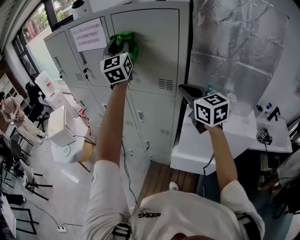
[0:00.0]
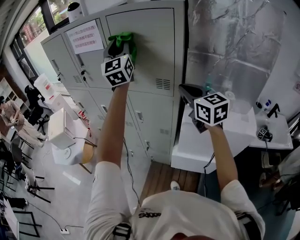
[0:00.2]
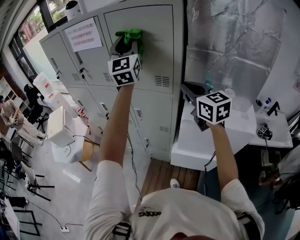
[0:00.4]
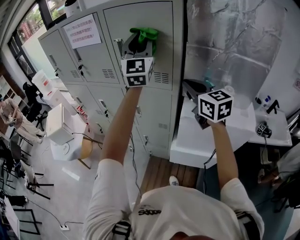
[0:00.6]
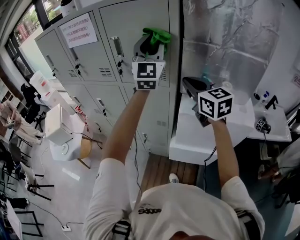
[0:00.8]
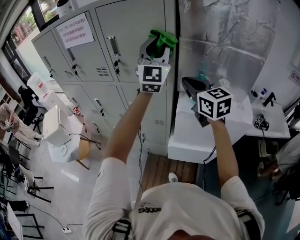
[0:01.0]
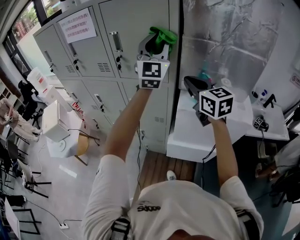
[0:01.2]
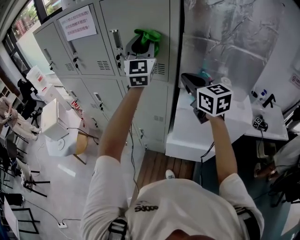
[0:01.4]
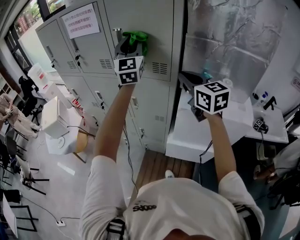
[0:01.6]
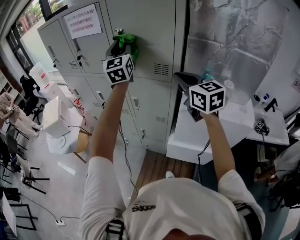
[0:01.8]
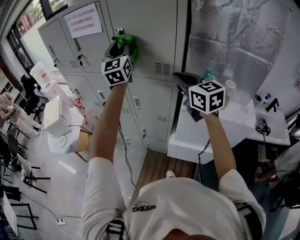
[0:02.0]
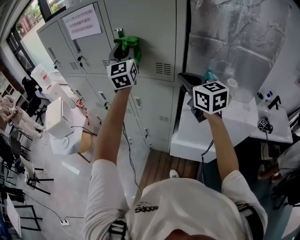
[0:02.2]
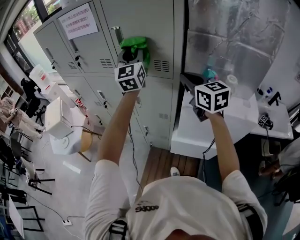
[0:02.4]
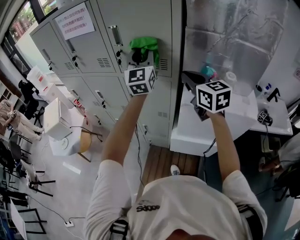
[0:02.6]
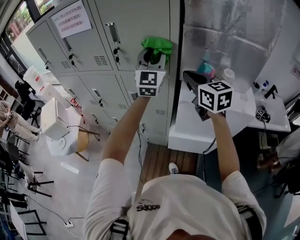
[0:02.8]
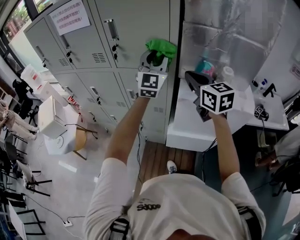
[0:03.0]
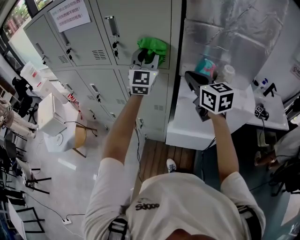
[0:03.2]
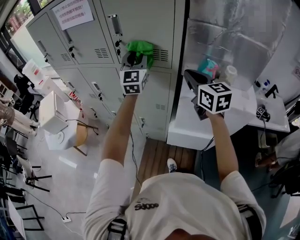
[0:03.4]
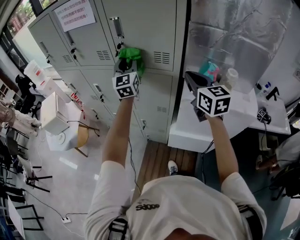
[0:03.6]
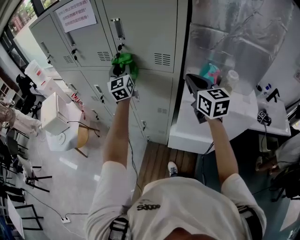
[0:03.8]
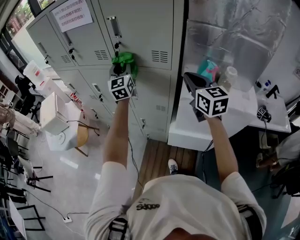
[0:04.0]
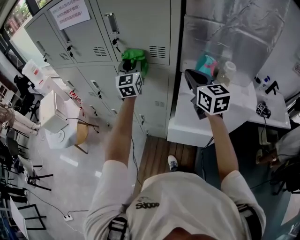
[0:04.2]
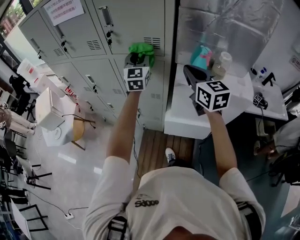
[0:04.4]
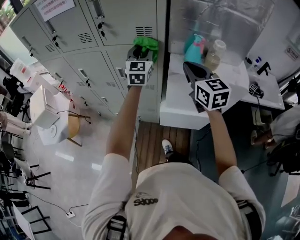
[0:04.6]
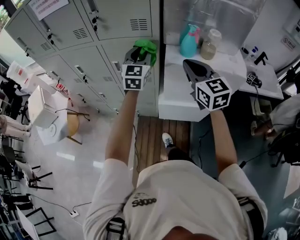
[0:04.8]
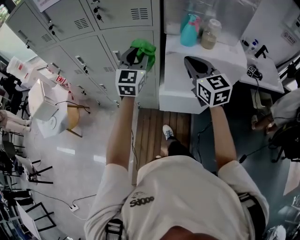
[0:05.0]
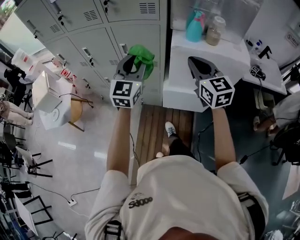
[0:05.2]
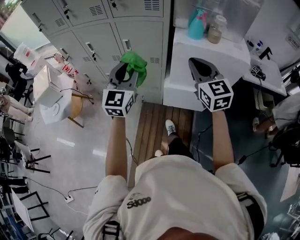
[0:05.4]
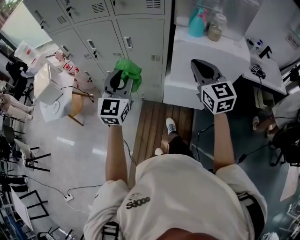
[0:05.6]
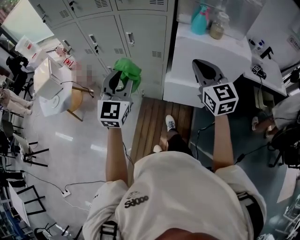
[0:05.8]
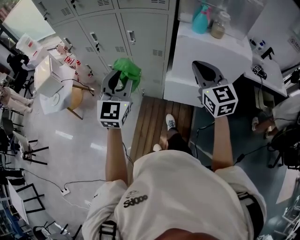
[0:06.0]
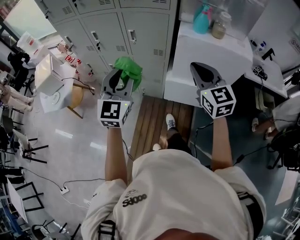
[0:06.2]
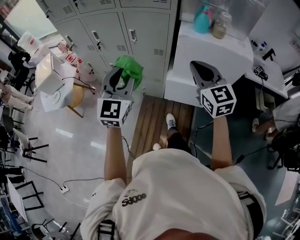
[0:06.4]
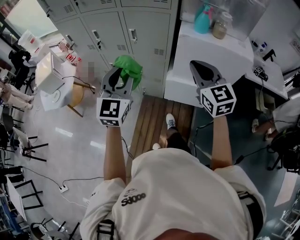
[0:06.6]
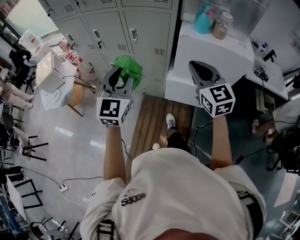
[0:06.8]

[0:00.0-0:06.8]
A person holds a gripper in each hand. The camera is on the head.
0.0 to 1.4 s: The left gripper is displaced to the right, downward and backward by about 15 cm.
1.4 to 2.8 s: The left gripper travels downward by about 10 cm, and moves some 10 cm to the left and comes back.
2.8 to 4.0 s: The left gripper is displaced to the left, downward and forward by about 20 cm, and swivels some 20 degrees.
4.0 to 5.4 s: The left gripper is displaced backward by approximately 35 cm, and turns by approximately 20 degrees, while the right gripper travels backward by about 20 cm.
5.4 to 6.8 s: The grippers both shift backward by approximately 5 cm.

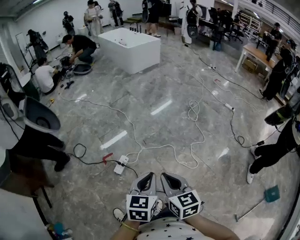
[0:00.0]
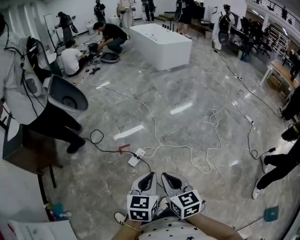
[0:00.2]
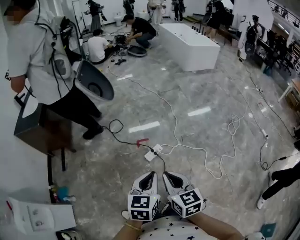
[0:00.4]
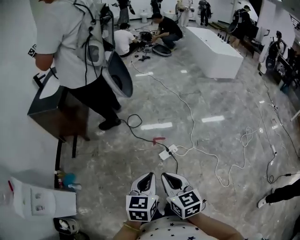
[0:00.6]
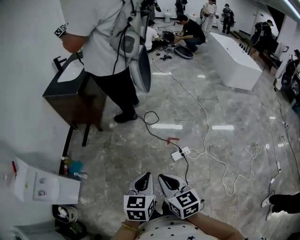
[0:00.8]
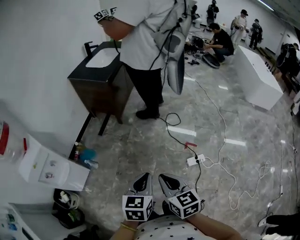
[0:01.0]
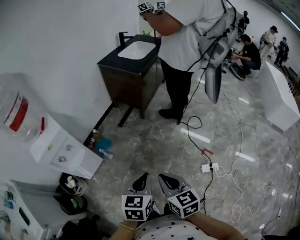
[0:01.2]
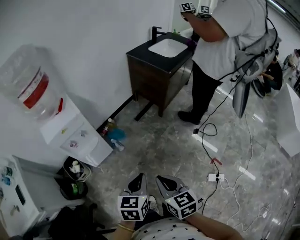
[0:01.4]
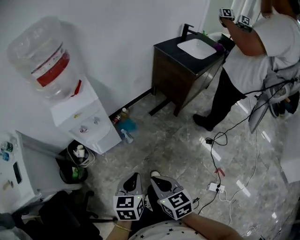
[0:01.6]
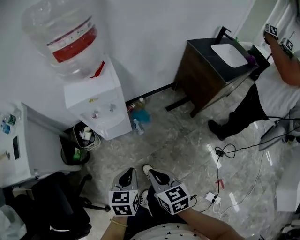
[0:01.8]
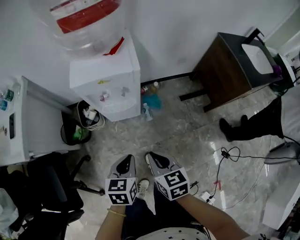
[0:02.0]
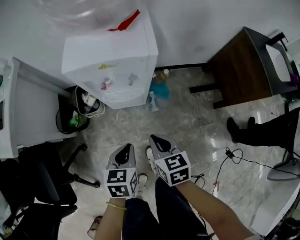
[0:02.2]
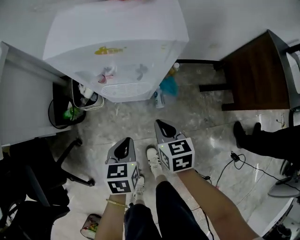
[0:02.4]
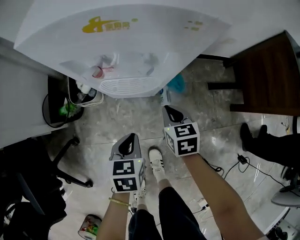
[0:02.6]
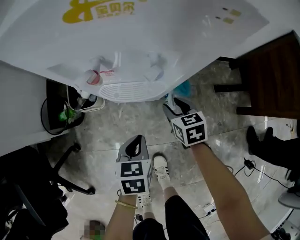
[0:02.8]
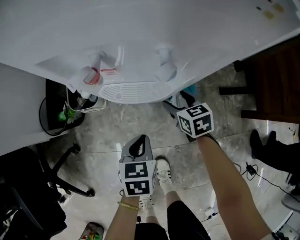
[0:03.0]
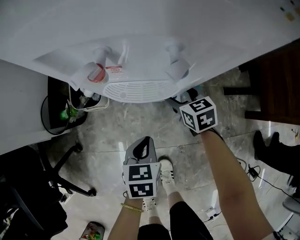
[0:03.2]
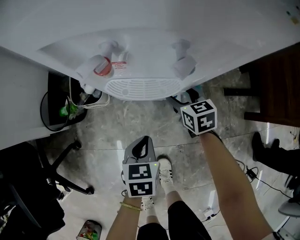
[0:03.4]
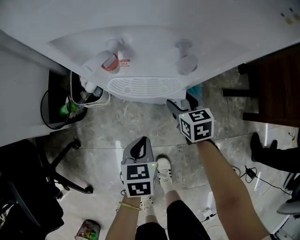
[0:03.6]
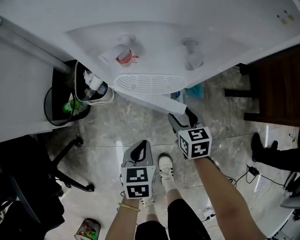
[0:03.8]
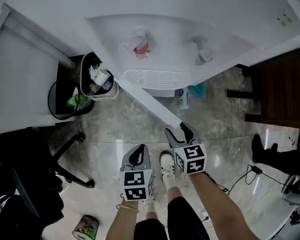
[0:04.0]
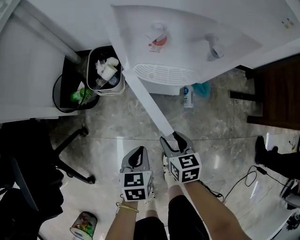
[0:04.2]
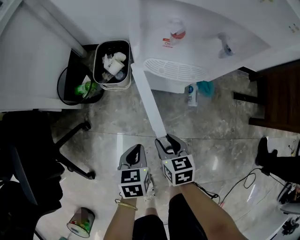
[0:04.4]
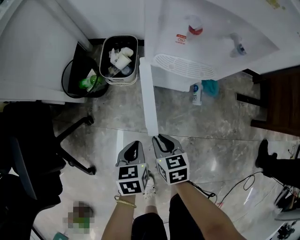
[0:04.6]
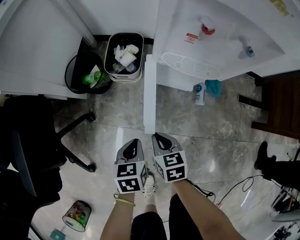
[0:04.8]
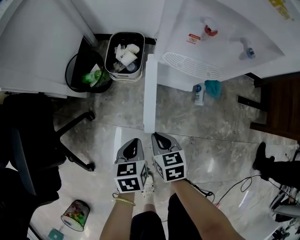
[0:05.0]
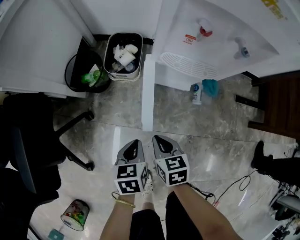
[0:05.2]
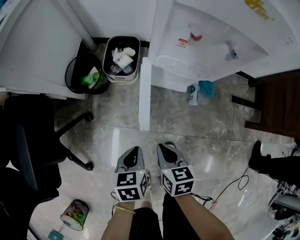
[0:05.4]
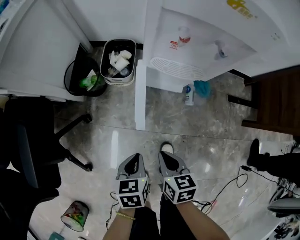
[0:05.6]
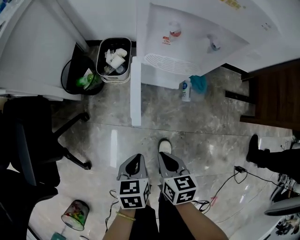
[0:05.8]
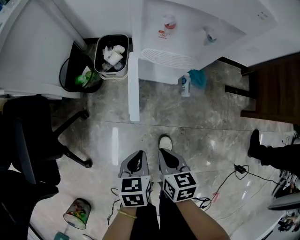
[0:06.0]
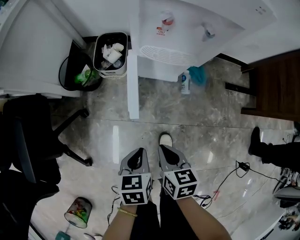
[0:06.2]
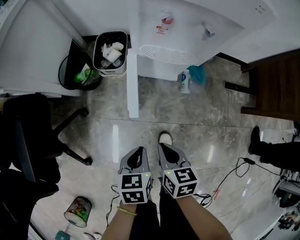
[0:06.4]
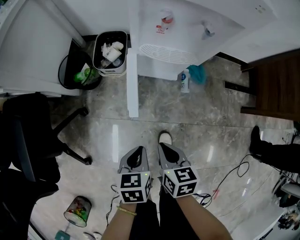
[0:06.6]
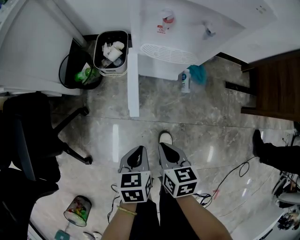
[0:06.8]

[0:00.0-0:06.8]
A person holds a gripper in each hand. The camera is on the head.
0.0 to 1.4 s: The two grippers travel together, approximately 80 cm. The left gripper swivels approximately 80 degrees. Meanwhile the right gripper changes its angle by some 80 degrees.
1.4 to 2.8 s: The right gripper ends up about 70 cm from where it was, changes its angle by approximately 50 degrees, and opens up, while the left gripper travels downward by approximately 40 cm, and changes its angle by some 50 degrees.
2.8 to 4.0 s: Both grippers move backward and to the left, some 10 cm.
4.0 to 5.4 s: The right gripper moves to the left, backward and upward, some 20 cm, and closes. The left gripper moves to the left and backward, about 10 cm.
5.4 to 6.8 s: The right gripper goes approximately 5 cm backward; the left gripper moves roughly 10 cm.

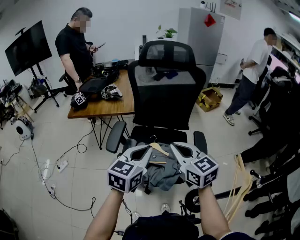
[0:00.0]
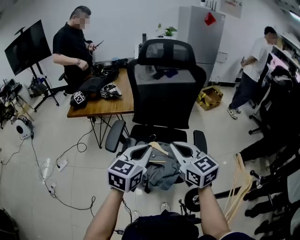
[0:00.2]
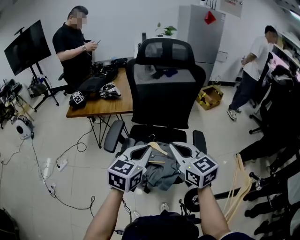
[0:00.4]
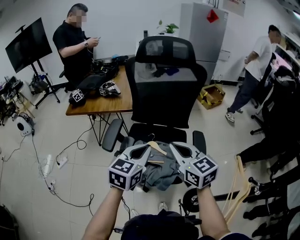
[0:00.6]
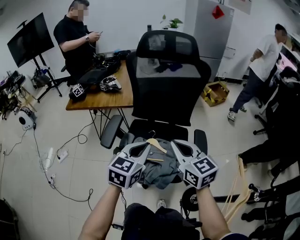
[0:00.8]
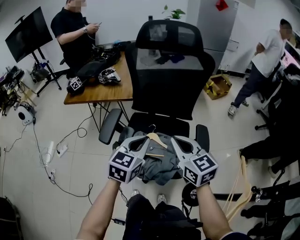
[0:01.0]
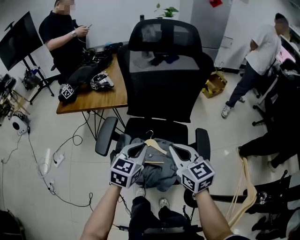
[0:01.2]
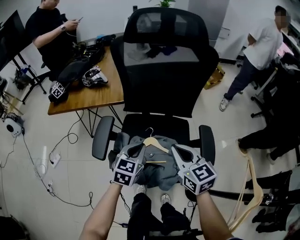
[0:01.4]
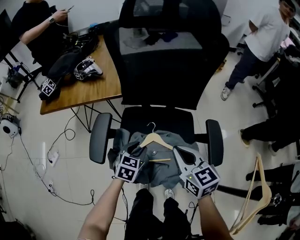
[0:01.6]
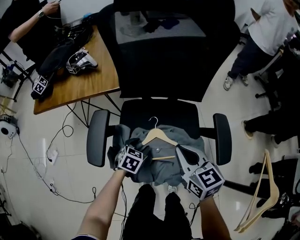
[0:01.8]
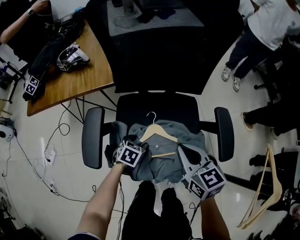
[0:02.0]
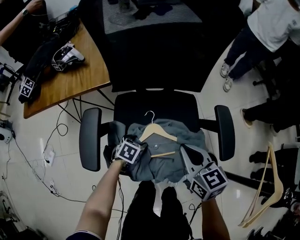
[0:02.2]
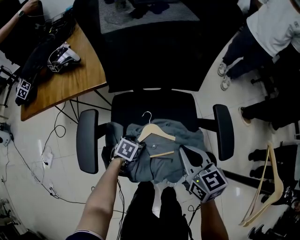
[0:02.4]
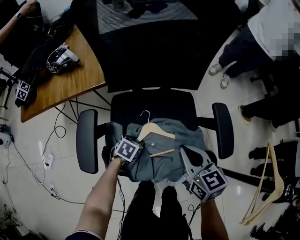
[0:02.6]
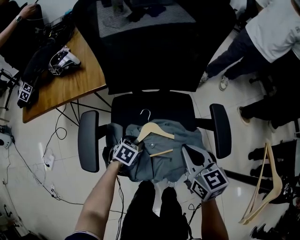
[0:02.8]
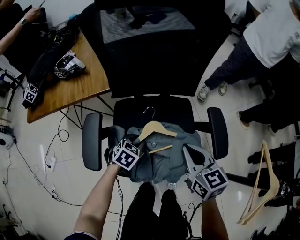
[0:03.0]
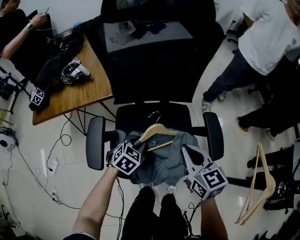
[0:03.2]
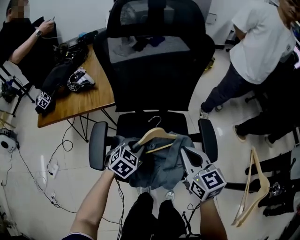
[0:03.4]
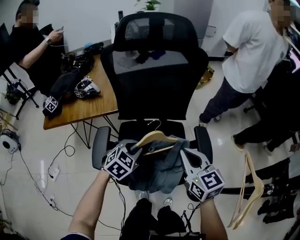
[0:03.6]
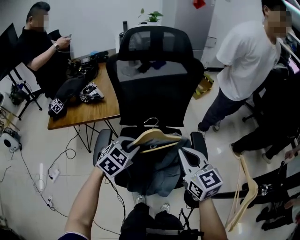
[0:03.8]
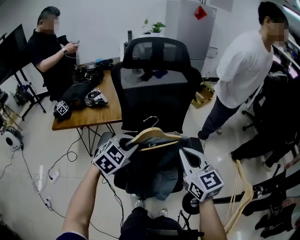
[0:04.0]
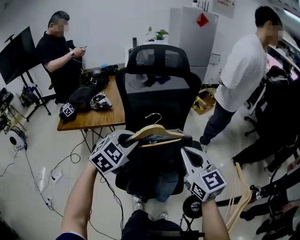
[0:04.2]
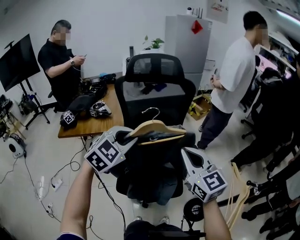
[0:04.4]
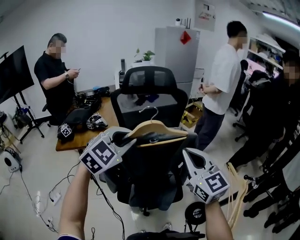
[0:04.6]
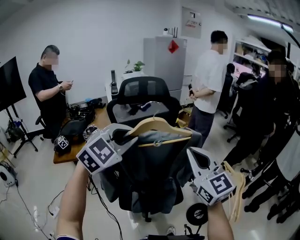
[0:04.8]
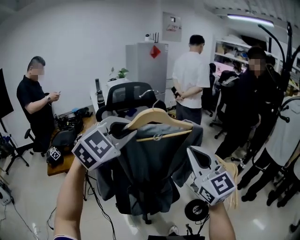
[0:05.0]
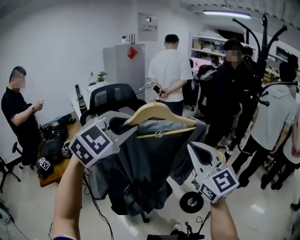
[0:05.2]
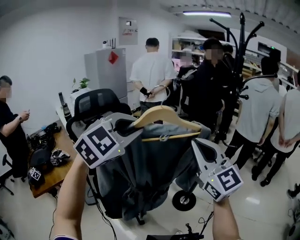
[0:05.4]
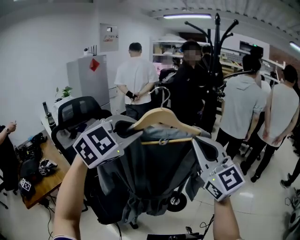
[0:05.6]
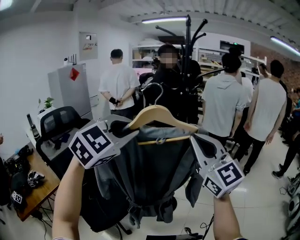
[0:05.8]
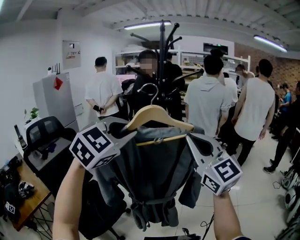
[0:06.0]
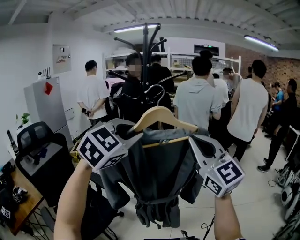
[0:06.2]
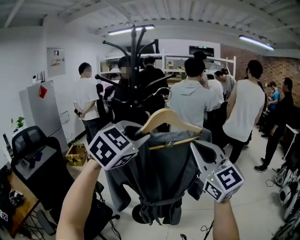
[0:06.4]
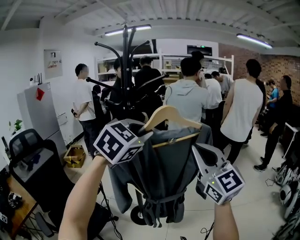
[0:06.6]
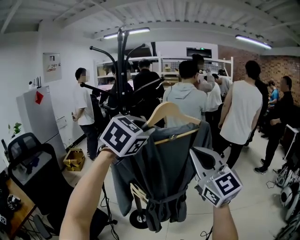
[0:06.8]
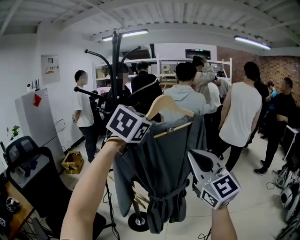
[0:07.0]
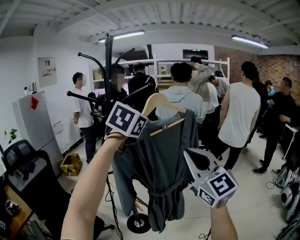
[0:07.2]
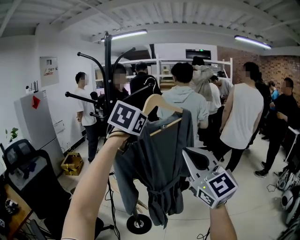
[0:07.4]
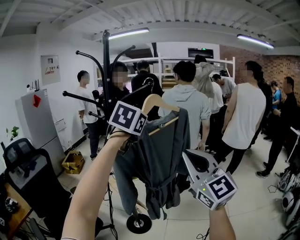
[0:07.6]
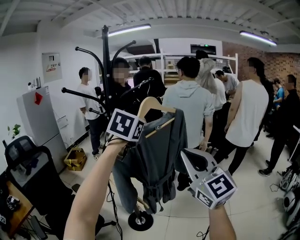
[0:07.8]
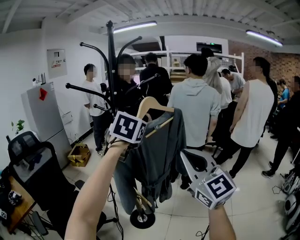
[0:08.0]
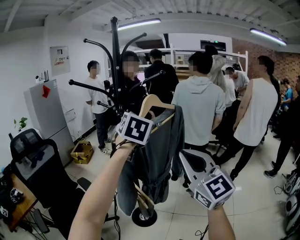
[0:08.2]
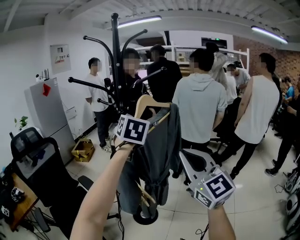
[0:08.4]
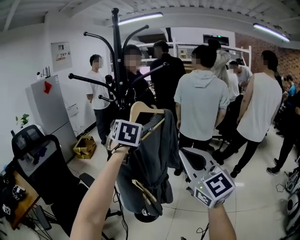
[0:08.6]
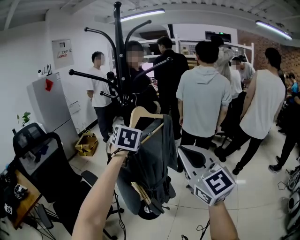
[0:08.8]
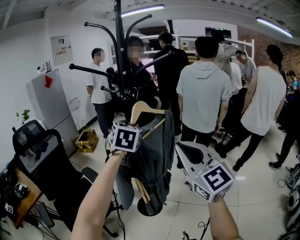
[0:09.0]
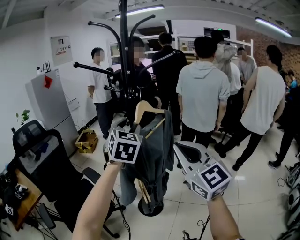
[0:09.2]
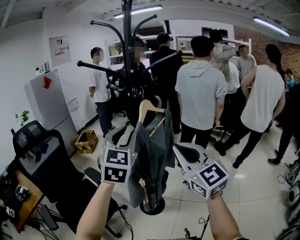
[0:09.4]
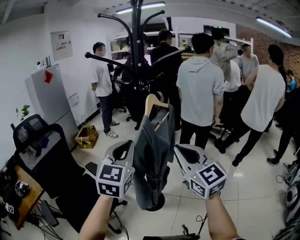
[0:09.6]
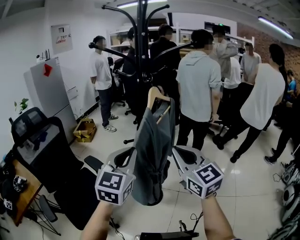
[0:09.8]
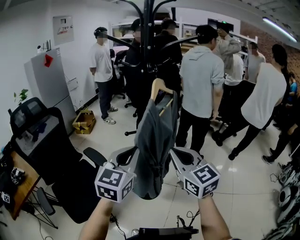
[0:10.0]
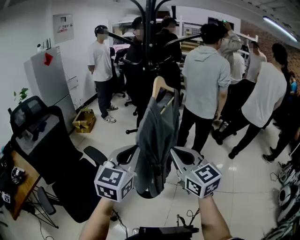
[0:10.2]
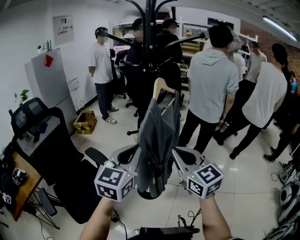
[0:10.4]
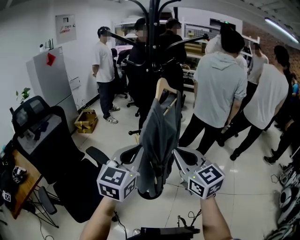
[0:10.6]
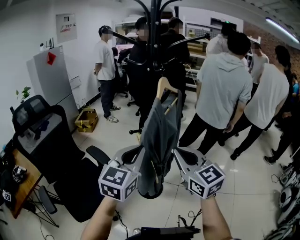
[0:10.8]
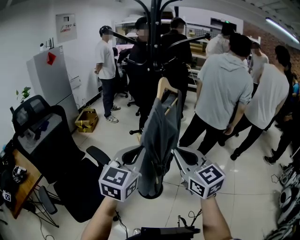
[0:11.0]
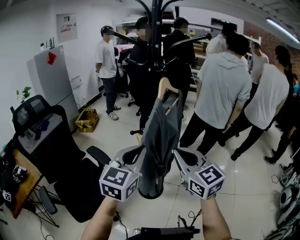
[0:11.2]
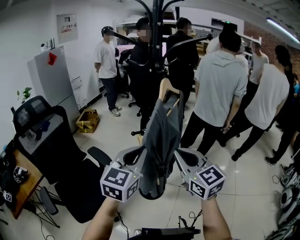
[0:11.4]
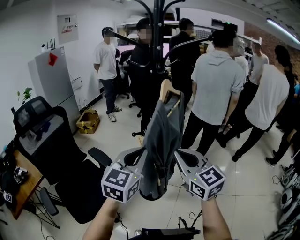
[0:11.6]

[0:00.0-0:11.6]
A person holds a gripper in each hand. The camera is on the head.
0.0 to 1.4 s: The right gripper is displaced downward and forward by about 15 cm. The left gripper shifts about 20 cm downward and forward.
1.4 to 2.8 s: The left gripper shifts approximately 25 cm downward, tilts its fingers about 30 degrees downward, and opens its fingers. The right gripper is displaced downward by roughly 10 cm.
2.8 to 4.4 s: The left gripper is displaced upward by roughly 50 cm, and tilts its fingers some 30 degrees upward. The right gripper shifts roughly 30 cm upward, and swivels some 30 degrees.
4.4 to 5.8 s: The left gripper changes place by some 40 cm, and rotates approximately 60 degrees, while the right gripper moves roughly 40 cm, and swivels about 60 degrees.
5.8 to 7.2 s: The right gripper is displaced to the right by about 25 cm, while the left gripper goes some 35 cm to the right and forward.
7.2 to 8.8 s: The right gripper travels forward and downward by approximately 10 cm; the left gripper shifts approximately 20 cm downward, to the left and forward, and swivels some 30 degrees.
8.8 to 10.2 s: The left gripper goes some 20 cm backward, changes its angle by roughly 30 degrees, and opens, then closes again, while the right gripper moves downward and to the left, approximately 15 cm.
10.2 to 11.6 s: Neither gripper changes place.
